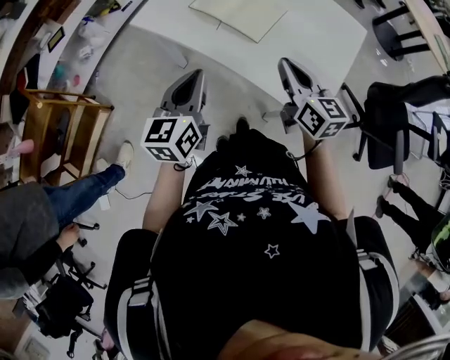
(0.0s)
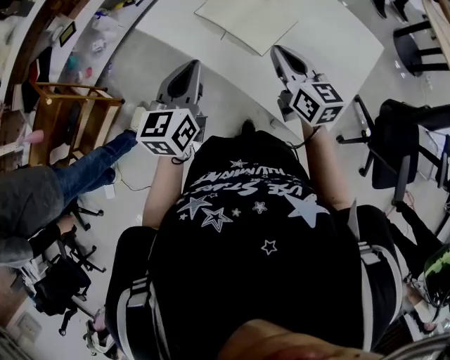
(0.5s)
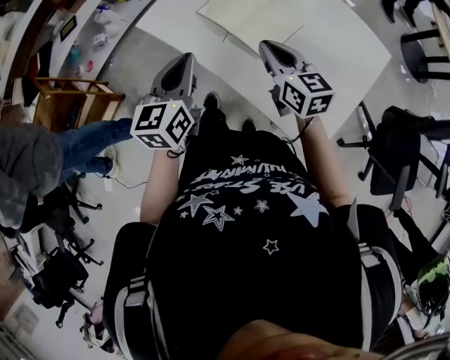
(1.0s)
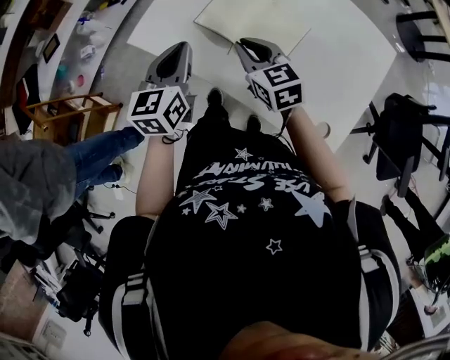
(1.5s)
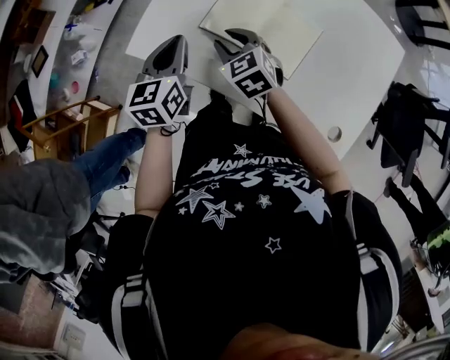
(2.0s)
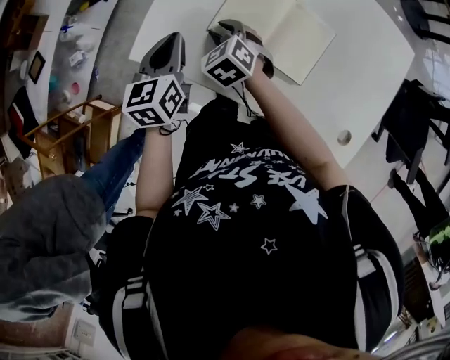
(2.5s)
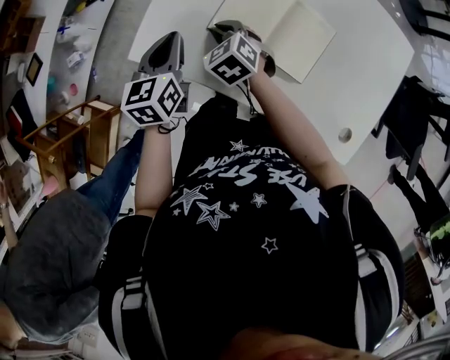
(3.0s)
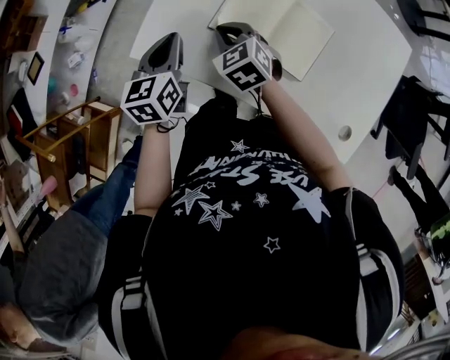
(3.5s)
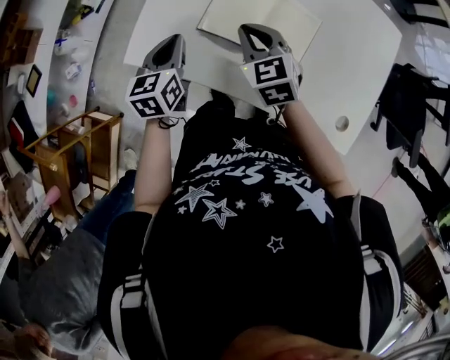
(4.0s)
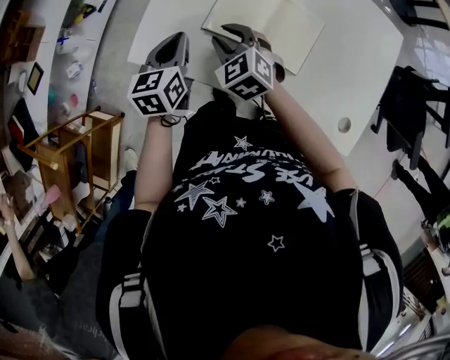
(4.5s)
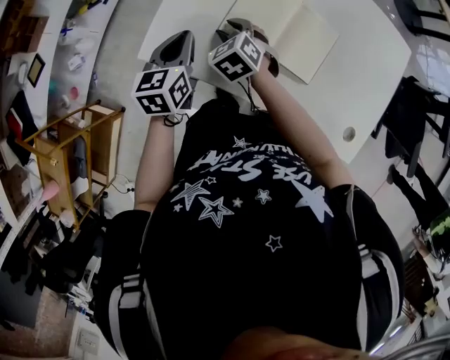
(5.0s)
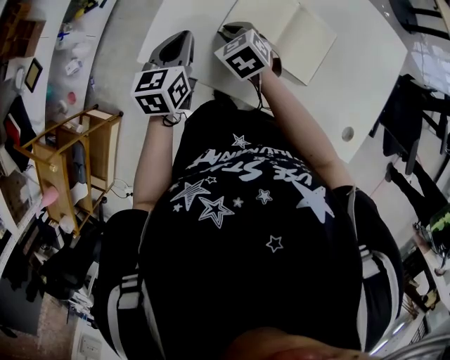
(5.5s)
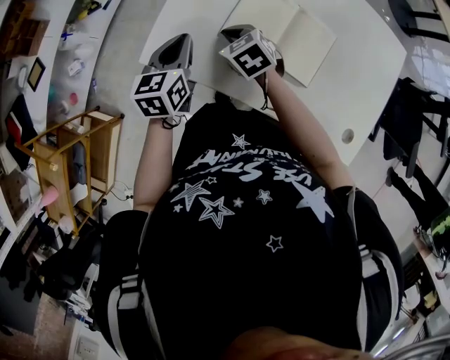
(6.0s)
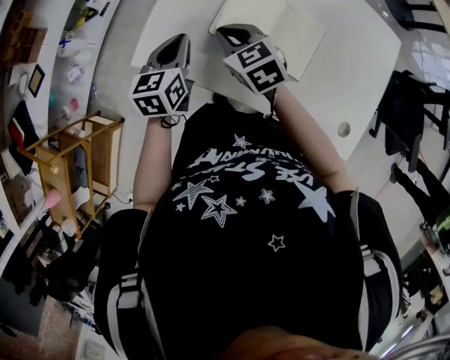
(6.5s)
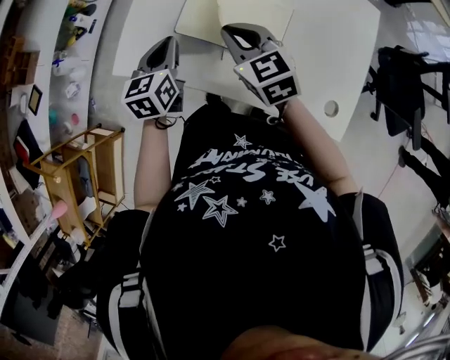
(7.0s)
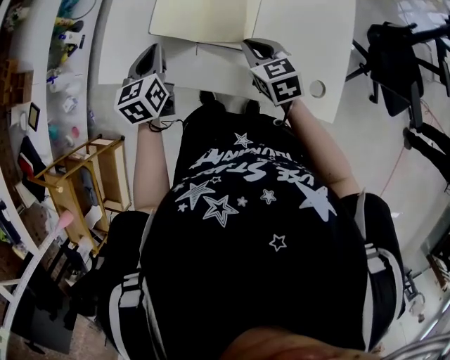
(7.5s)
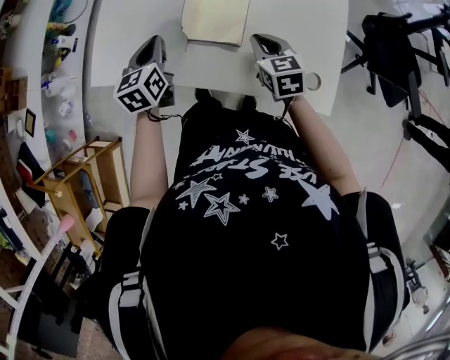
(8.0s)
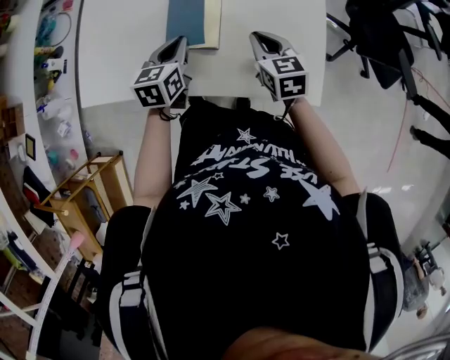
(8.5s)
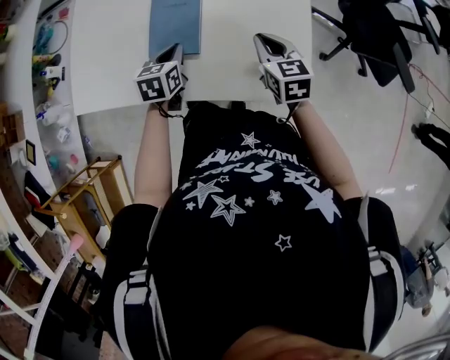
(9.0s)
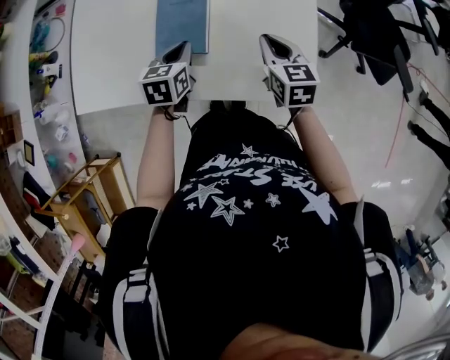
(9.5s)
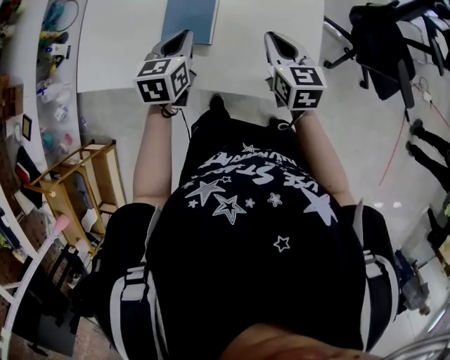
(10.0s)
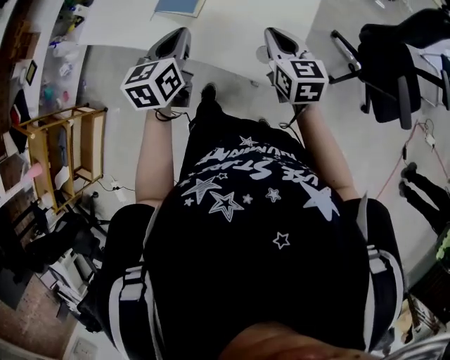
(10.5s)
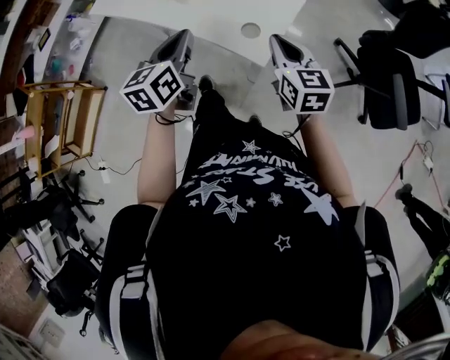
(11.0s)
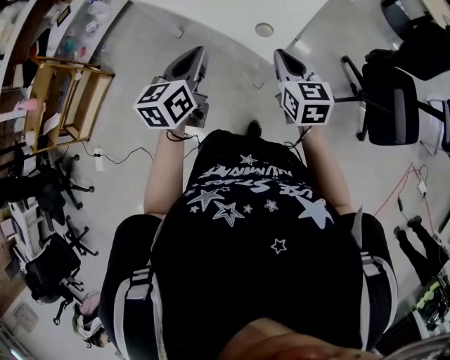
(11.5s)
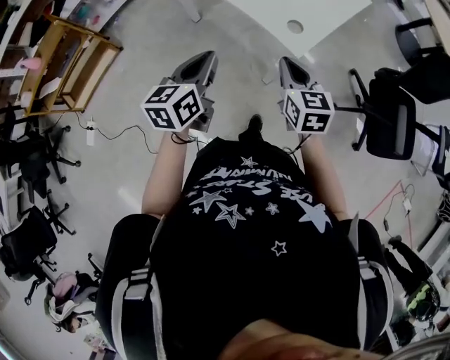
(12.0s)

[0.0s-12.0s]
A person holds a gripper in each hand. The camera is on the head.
0.0s to 2.0s: The right gripper shifts about 35 cm forward, to the left and downward, changes its angle by some 40 degrees, and opens. The left gripper heads forward, covering about 30 cm.
2.0s to 4.0s: The right gripper shifts by approximately 5 cm, and closes; the left gripper shifts by about 5 cm.
4.0s to 6.0s: The right gripper goes approximately 15 cm to the left and downward, swivels some 20 degrees, and opens and closes again.
6.0s to 8.0s: The left gripper is displaced to the right by about 15 cm, while the right gripper moves to the right and backward, about 30 cm, and rotates roughly 40 degrees.
8.0s to 10.0s: The left gripper shifts approximately 20 cm to the right. Meanwhile the right gripper goes some 15 cm to the right and upward.
10.0s to 12.0s: The right gripper shifts by approximately 35 cm, and rotates roughly 30 degrees; the left gripper changes place by approximately 50 cm, and swivels some 40 degrees.

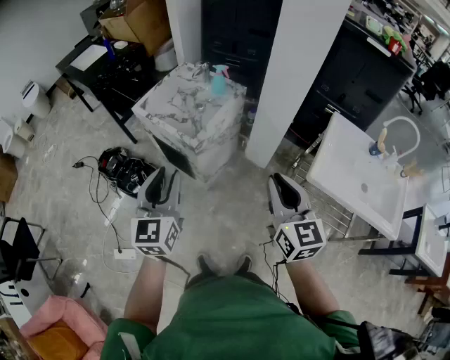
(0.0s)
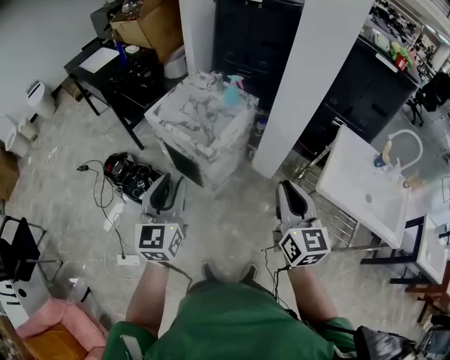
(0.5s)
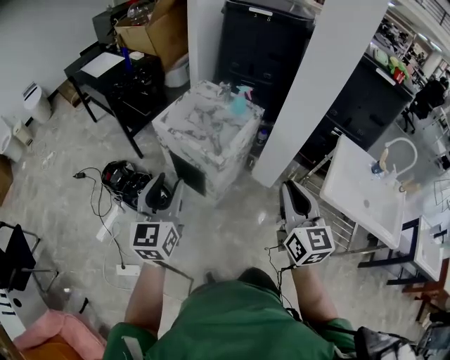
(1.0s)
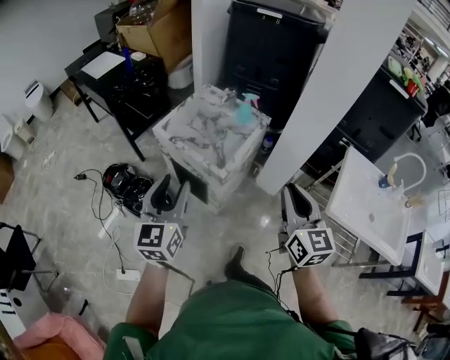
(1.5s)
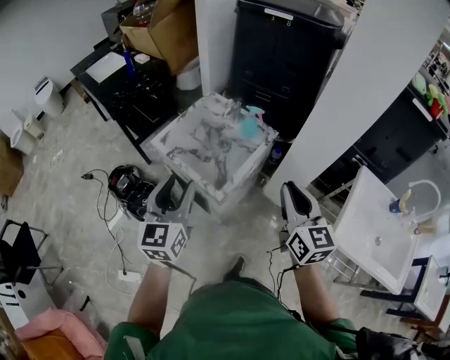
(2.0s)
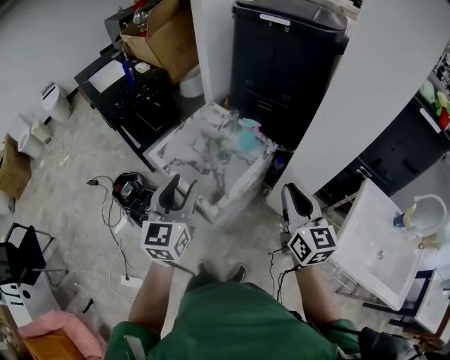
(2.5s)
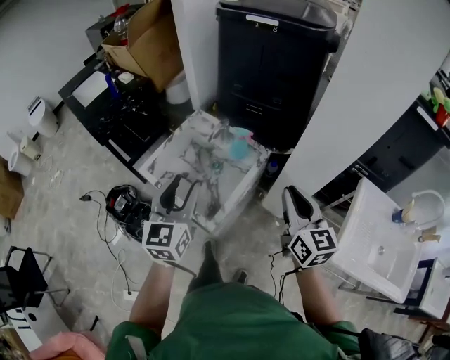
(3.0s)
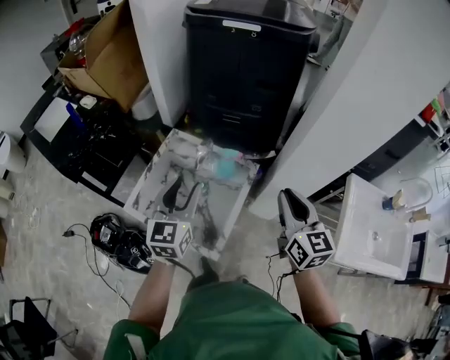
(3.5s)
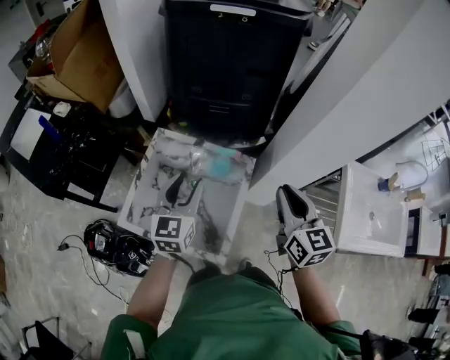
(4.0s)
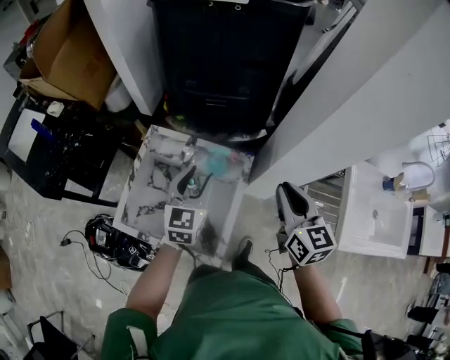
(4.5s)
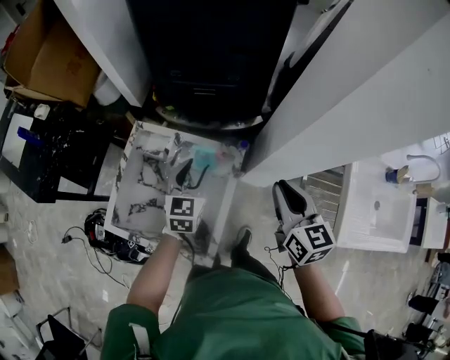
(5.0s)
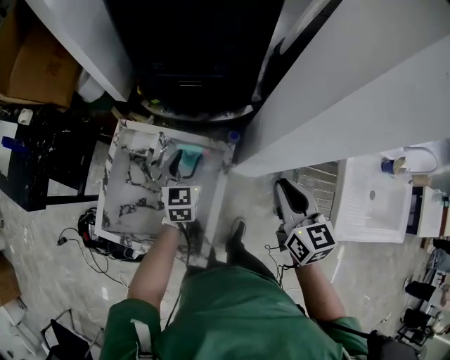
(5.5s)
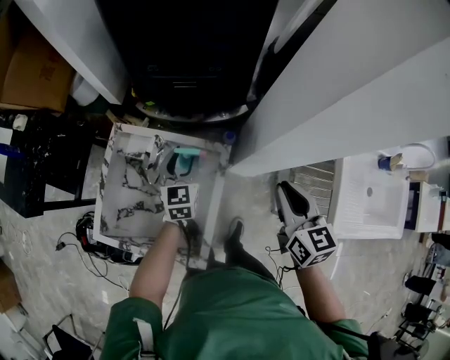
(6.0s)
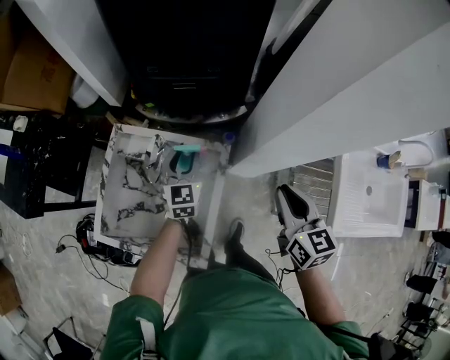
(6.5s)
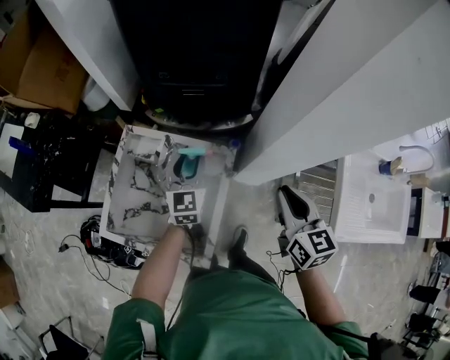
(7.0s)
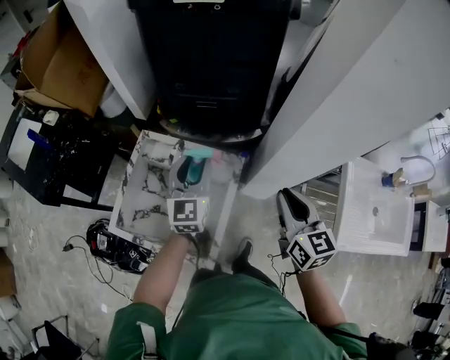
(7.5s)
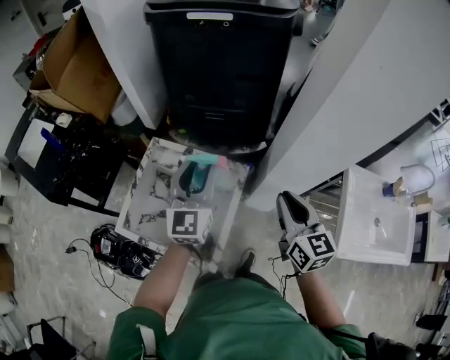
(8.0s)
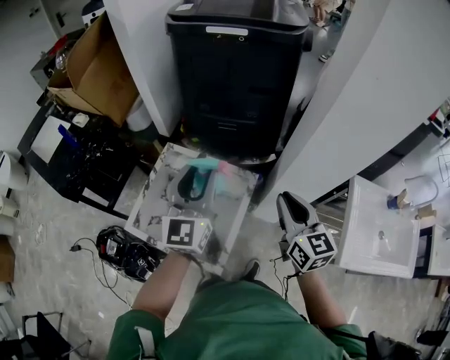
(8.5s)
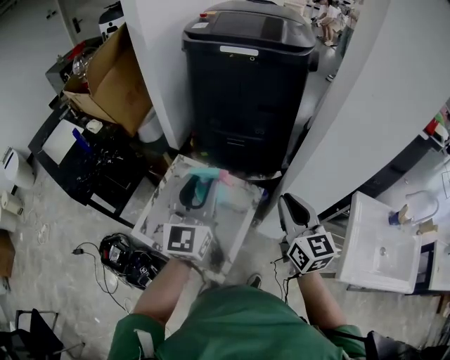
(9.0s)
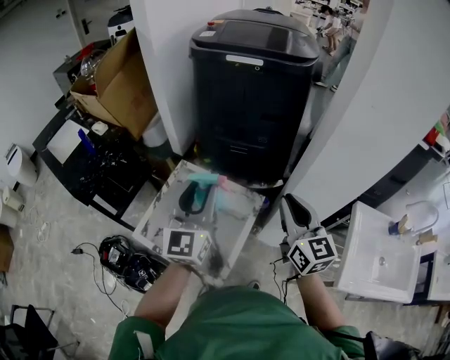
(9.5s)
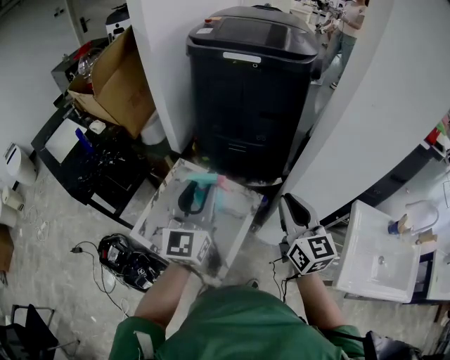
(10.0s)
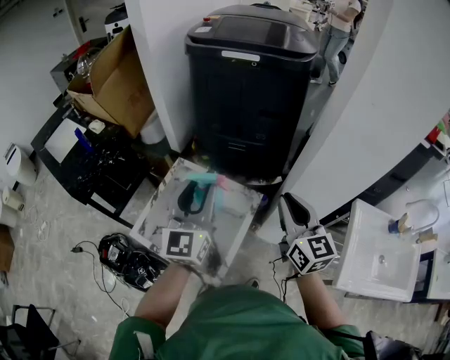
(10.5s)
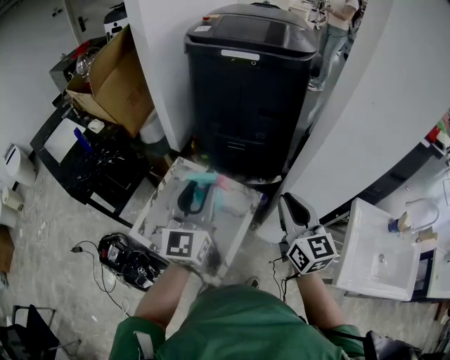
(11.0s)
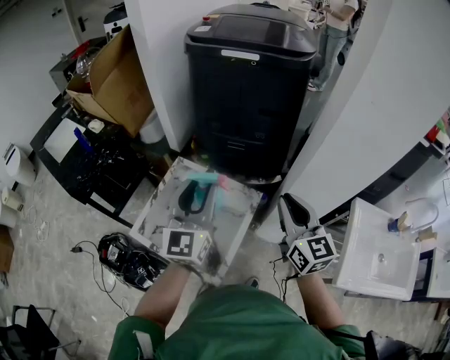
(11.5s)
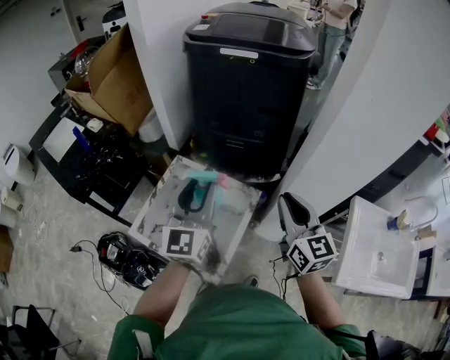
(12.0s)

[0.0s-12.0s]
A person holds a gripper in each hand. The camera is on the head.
0.0s to 2.0s: Both grippers travel together forward, approximately 20 cm.
2.0s to 4.0s: The grippers both shift forward by about 30 cm. The right gripper changes its angle by approximately 20 degrees. The left gripper rotates some 30 degrees.
4.0s to 6.0s: The right gripper goes some 15 cm to the right, downward and forward. Meanwhile the left gripper is displaced downward, forward and to the right by approximately 25 cm.
6.0s to 8.0s: The right gripper heads upward, covering about 10 cm, while the left gripper travels upward and backward by approximately 25 cm, and turns by approximately 20 degrees.
8.0s to 10.0s: The left gripper is displaced upward and backward by about 10 cm, while the right gripper travels upward by roughly 10 cm.
10.0s to 12.0s: The two grippers keep their place.

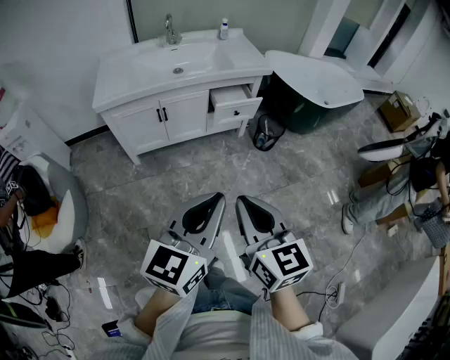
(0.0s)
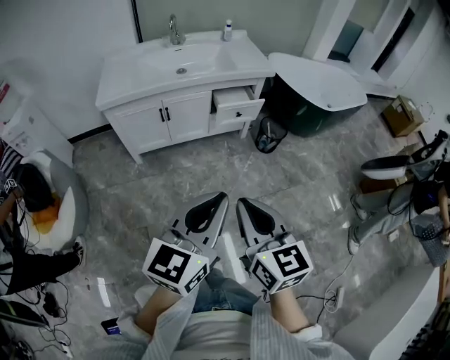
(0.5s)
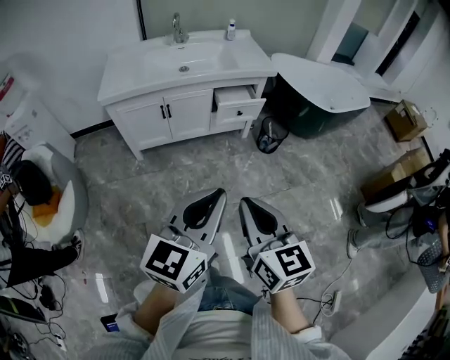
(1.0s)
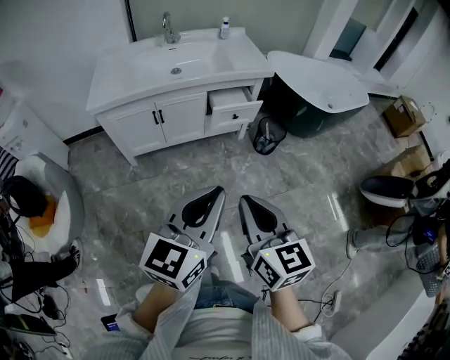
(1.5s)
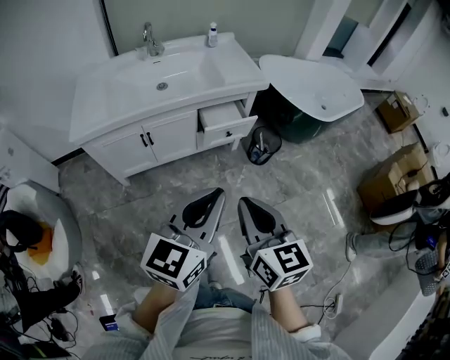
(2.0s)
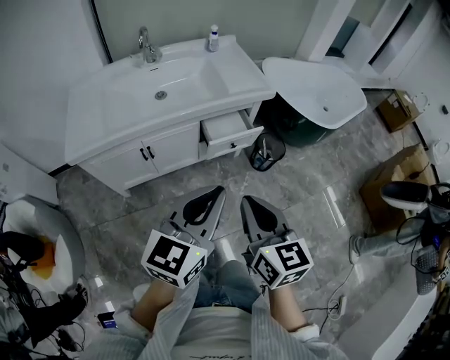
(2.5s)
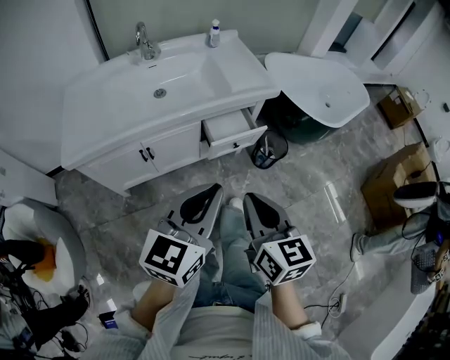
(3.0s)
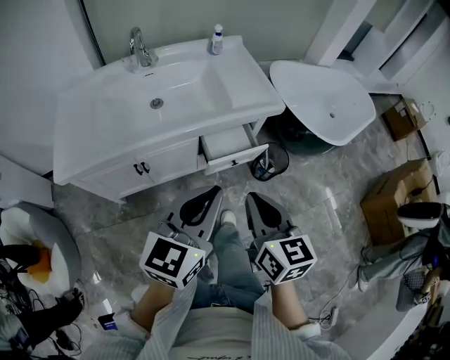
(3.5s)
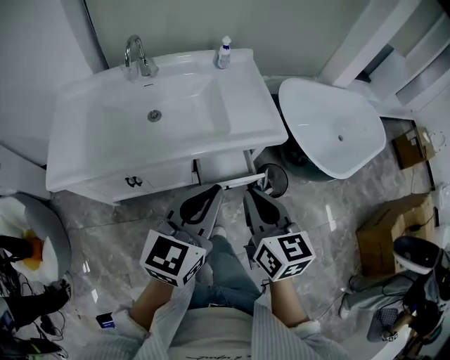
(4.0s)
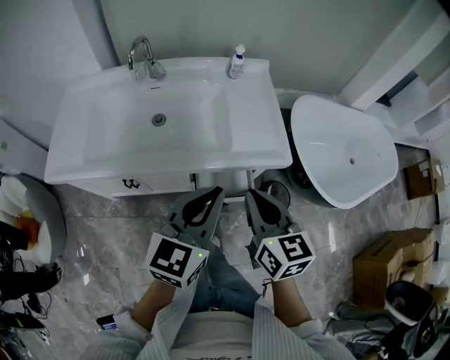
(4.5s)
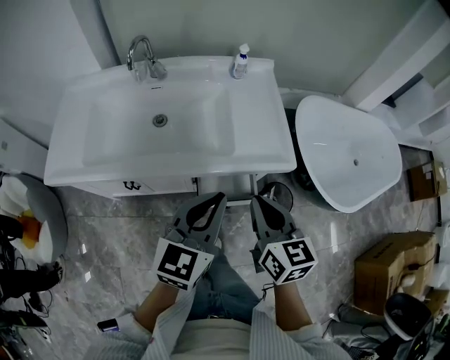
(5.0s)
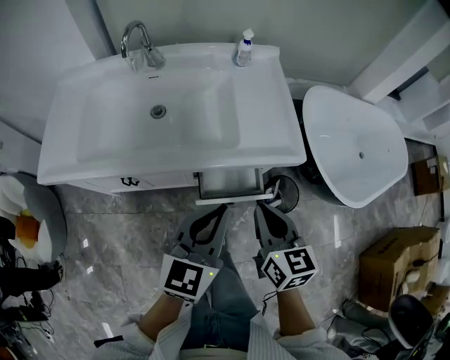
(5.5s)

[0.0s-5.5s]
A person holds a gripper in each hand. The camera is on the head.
0.0s to 2.0s: Both grippers move forward, approximately 20 cm.
2.0s to 3.5s: The grippers both shift forward by roughly 20 cm.
3.5s to 5.5s: Both grippers move forward, to the right and downward, about 20 cm.
